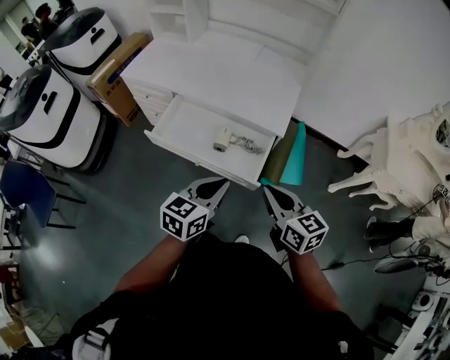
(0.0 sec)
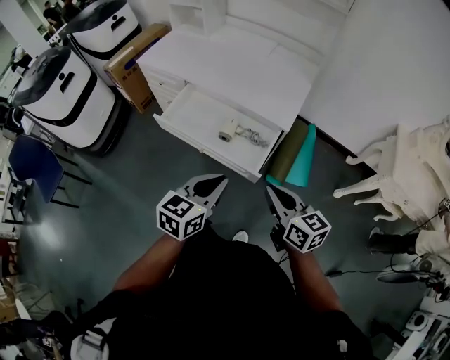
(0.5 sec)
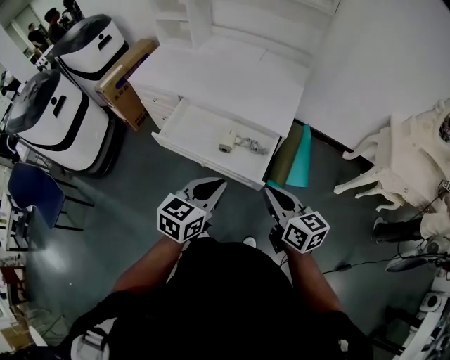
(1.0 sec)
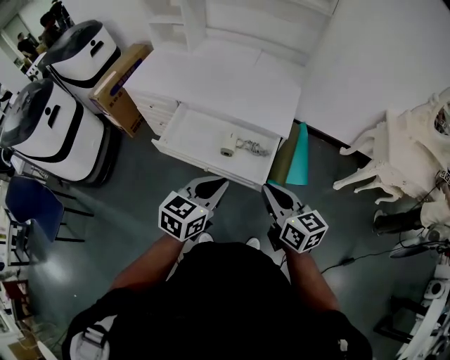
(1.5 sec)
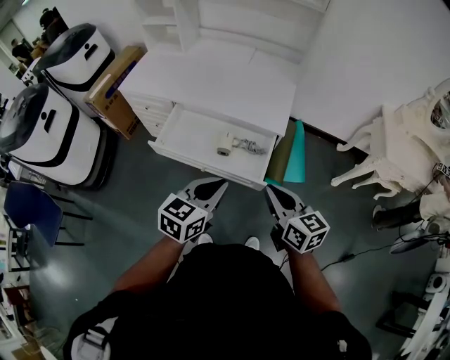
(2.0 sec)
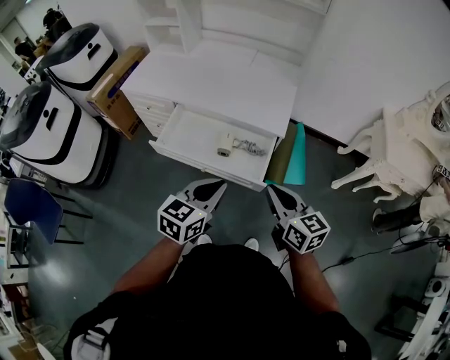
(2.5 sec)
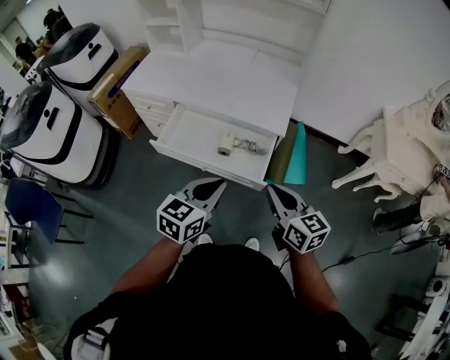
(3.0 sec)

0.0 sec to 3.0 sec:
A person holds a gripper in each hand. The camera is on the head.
0.0 sec to 3.0 sec: The grippers move only a little.

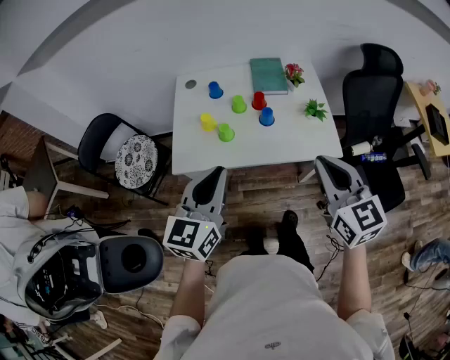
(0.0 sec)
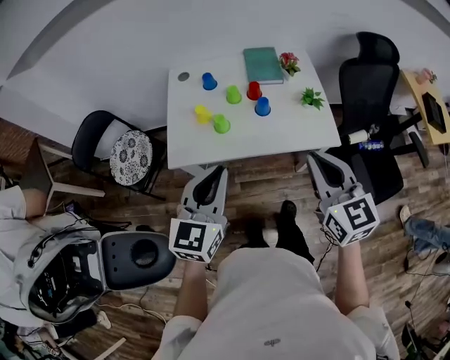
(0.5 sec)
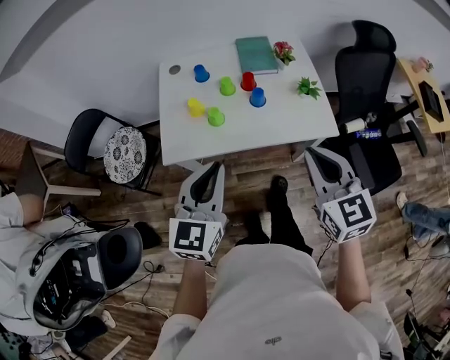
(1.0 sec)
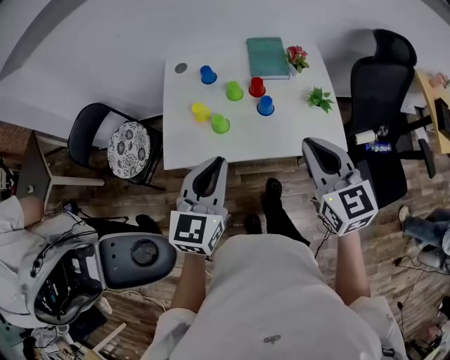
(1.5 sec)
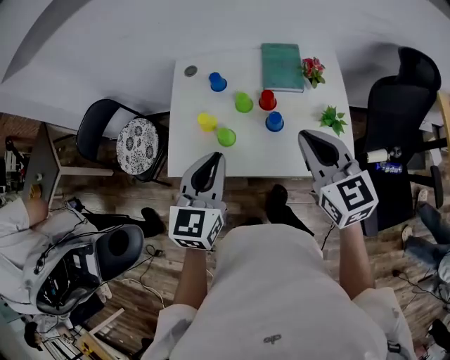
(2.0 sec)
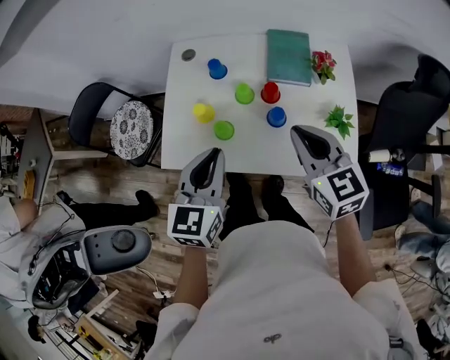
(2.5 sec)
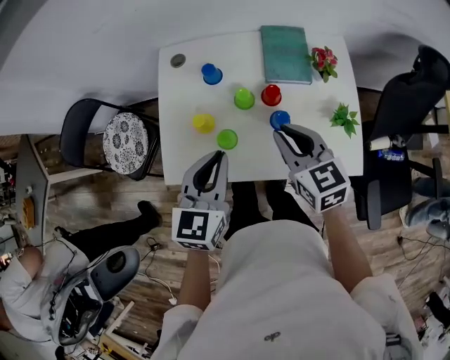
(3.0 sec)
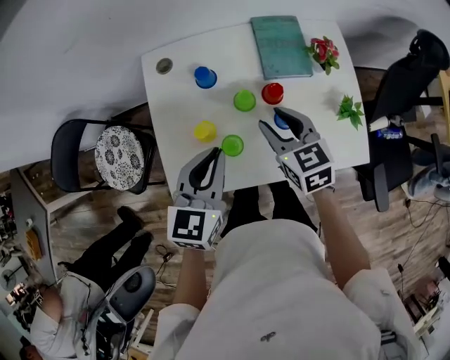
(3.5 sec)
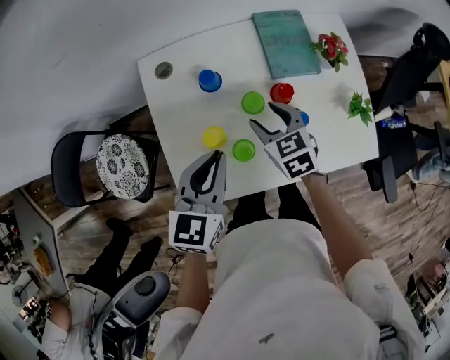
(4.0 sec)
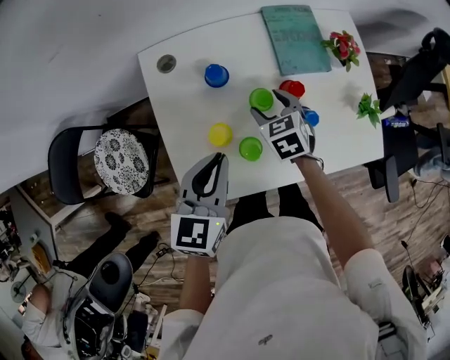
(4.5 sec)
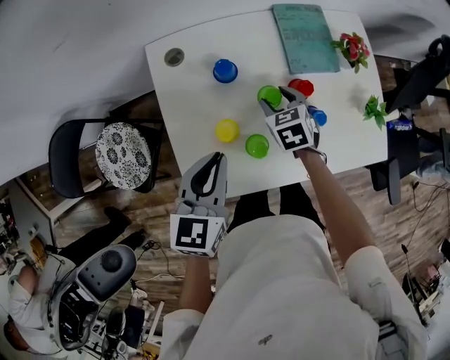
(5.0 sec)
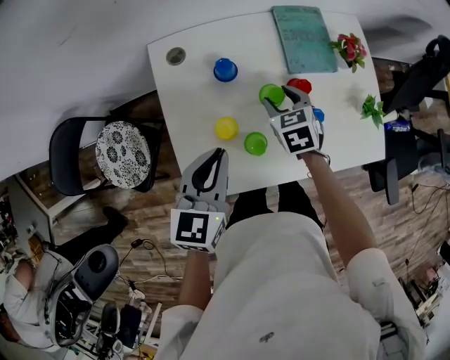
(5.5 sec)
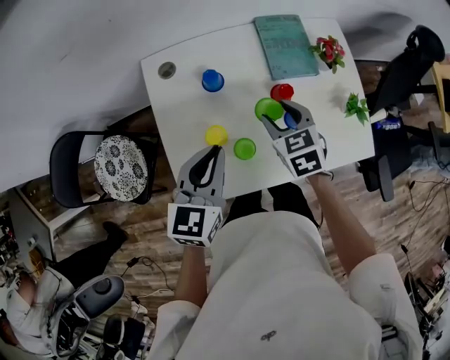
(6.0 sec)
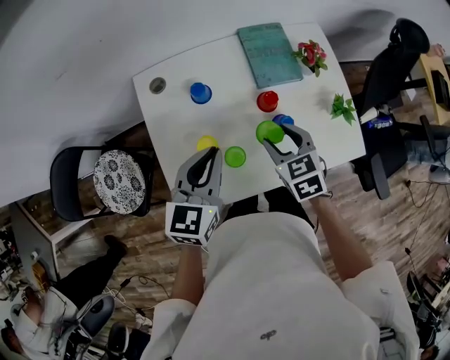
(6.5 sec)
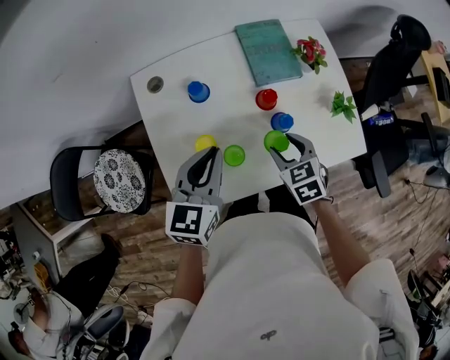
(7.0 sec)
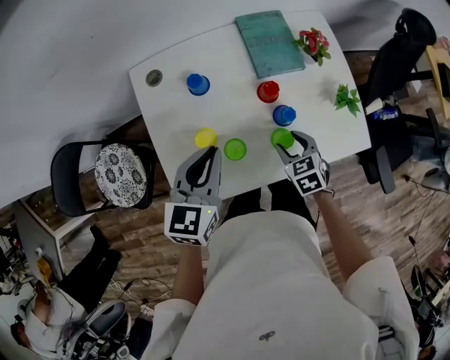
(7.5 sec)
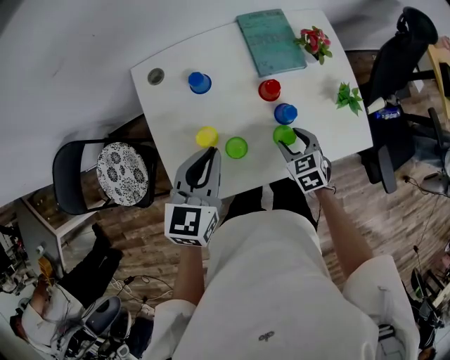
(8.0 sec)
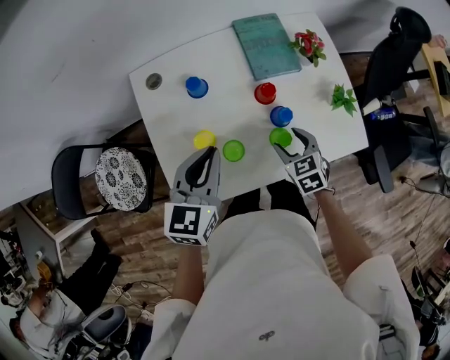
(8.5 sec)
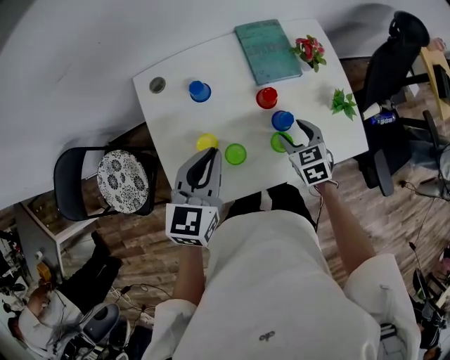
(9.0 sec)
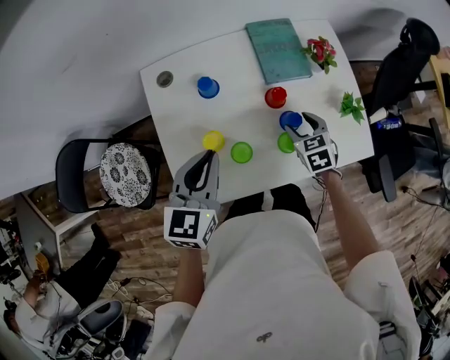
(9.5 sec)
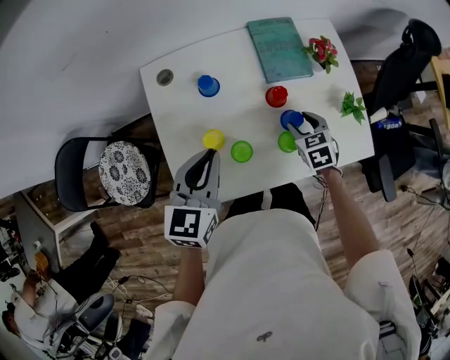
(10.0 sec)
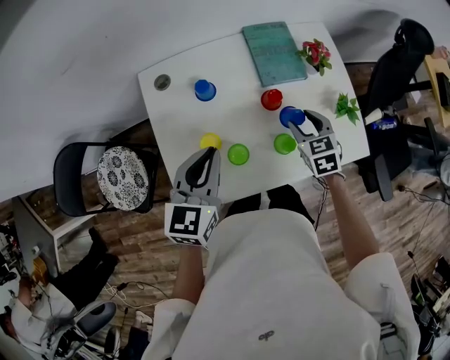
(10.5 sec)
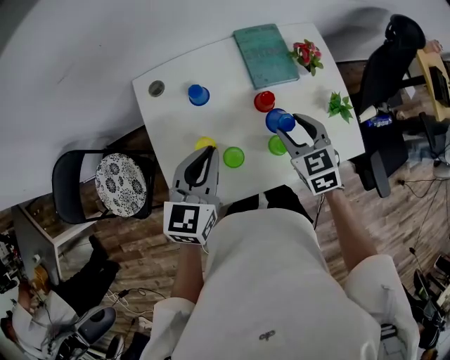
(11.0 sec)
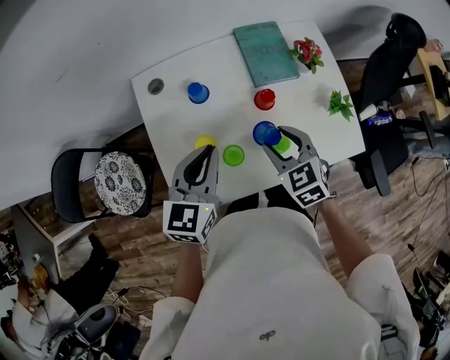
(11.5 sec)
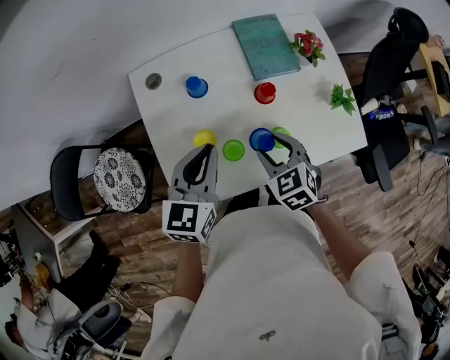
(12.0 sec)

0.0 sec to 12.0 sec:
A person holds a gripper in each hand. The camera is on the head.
0.0 sec to 2.0 sec: The two grippers go approximately 15 cm forward.
2.0 sec to 4.0 sec: The right gripper shifts roughly 35 cm downward, forward and to the left, changes its angle by about 30 degrees, and opens up; the left gripper moves forward, downward and to the left, approximately 20 cm, and turns by approximately 20 degrees.
4.0 sec to 6.0 sec: The right gripper travels downward and back again, some 5 cm each way.
6.0 sec to 8.0 sec: The right gripper goes roughly 15 cm downward, to the right and backward.
8.0 sec to 10.0 sec: The right gripper is displaced forward by approximately 5 cm.
10.0 sec to 12.0 sec: The right gripper shifts approximately 15 cm to the left, backward and upward.

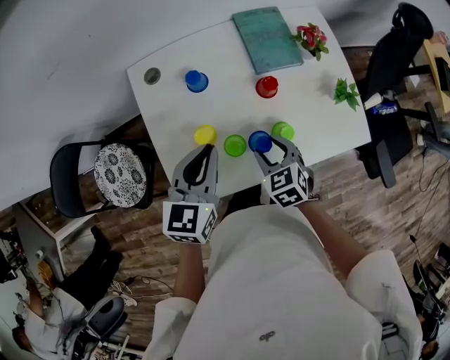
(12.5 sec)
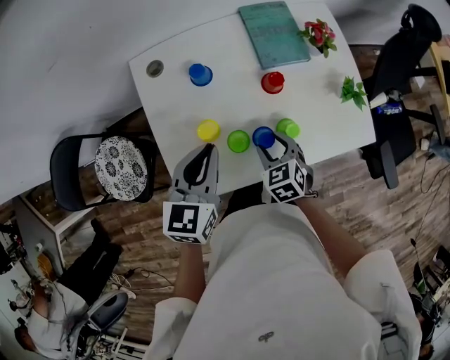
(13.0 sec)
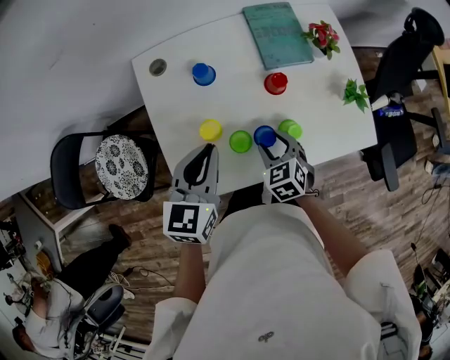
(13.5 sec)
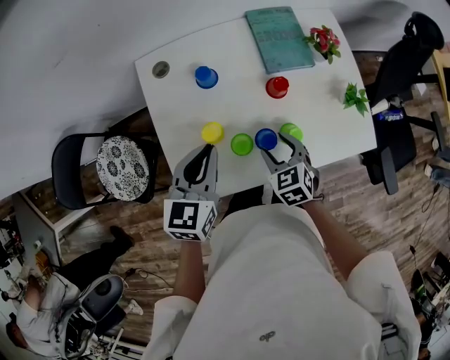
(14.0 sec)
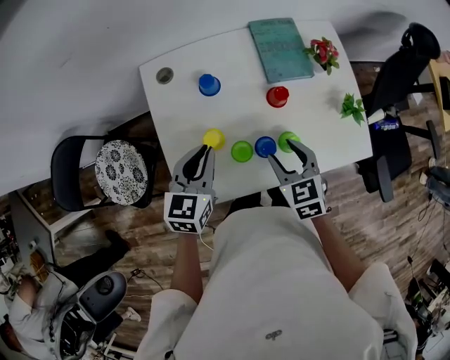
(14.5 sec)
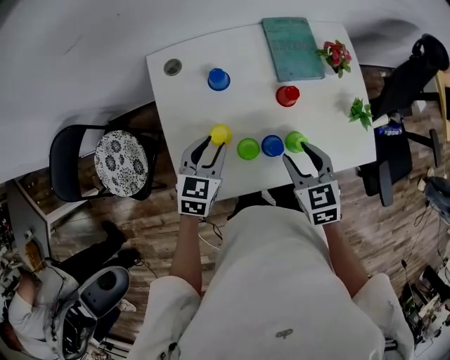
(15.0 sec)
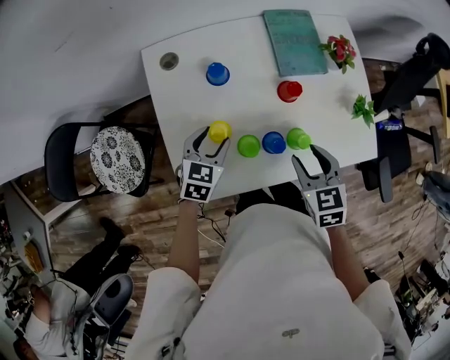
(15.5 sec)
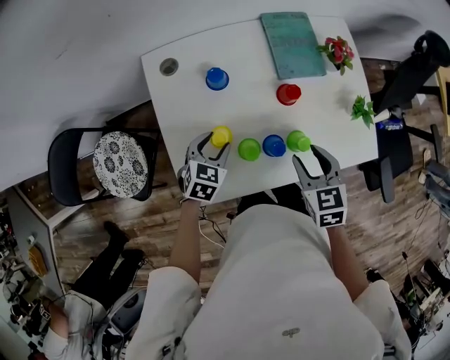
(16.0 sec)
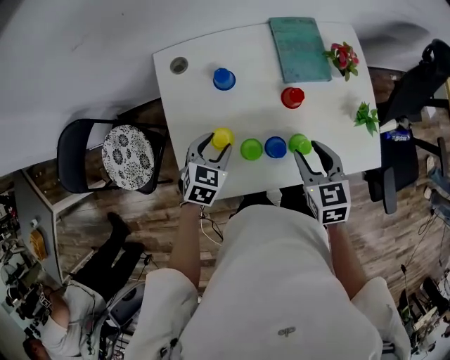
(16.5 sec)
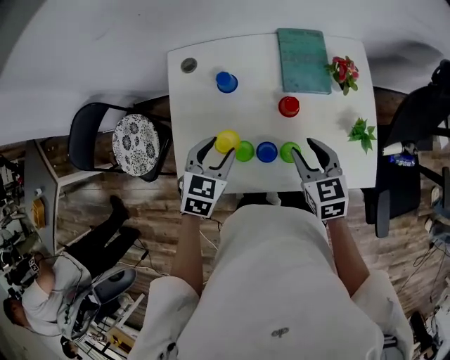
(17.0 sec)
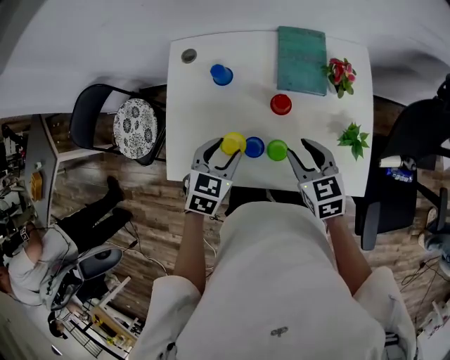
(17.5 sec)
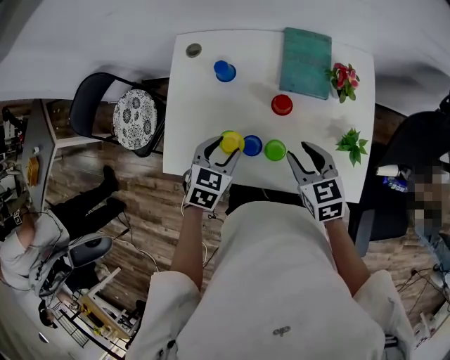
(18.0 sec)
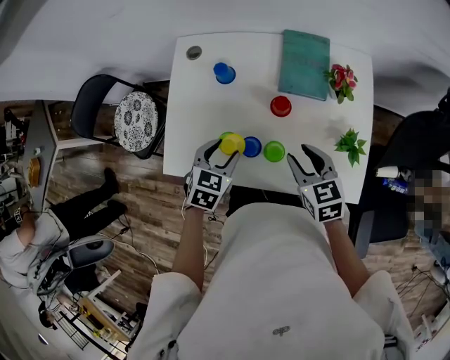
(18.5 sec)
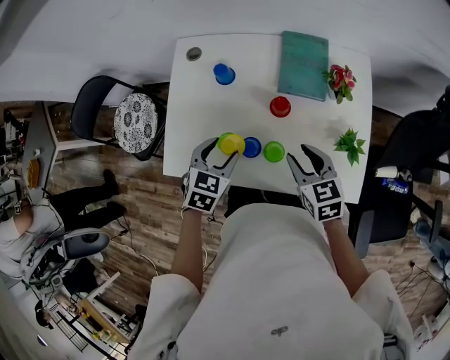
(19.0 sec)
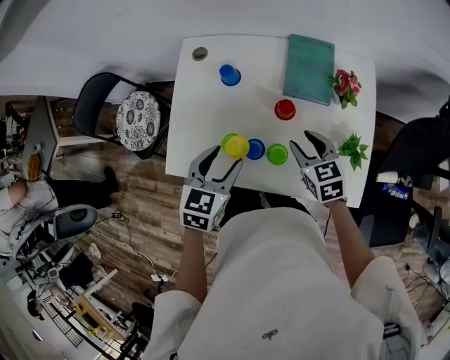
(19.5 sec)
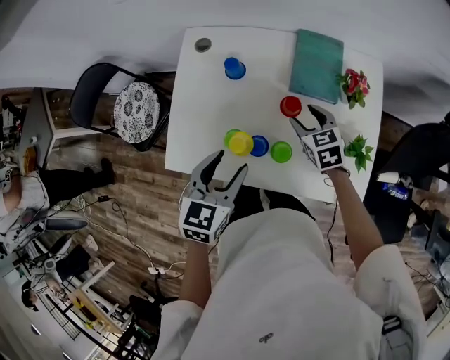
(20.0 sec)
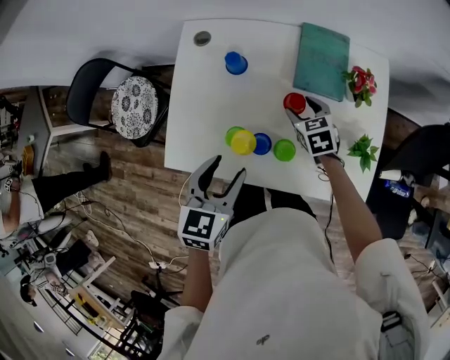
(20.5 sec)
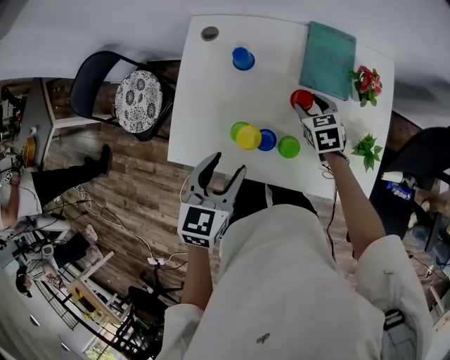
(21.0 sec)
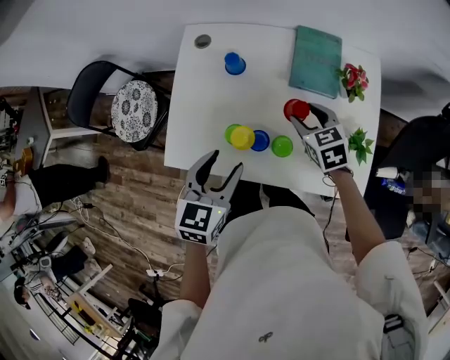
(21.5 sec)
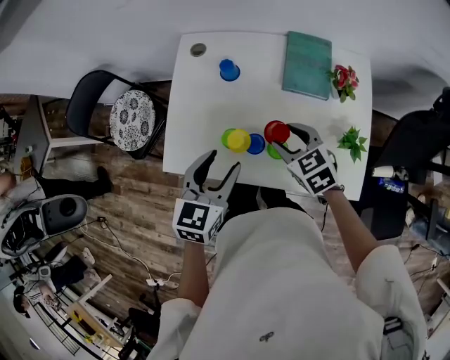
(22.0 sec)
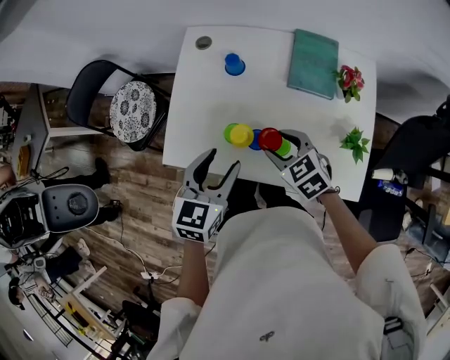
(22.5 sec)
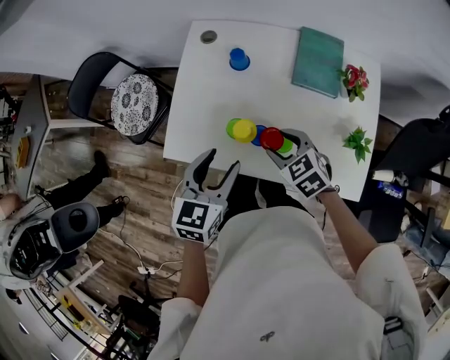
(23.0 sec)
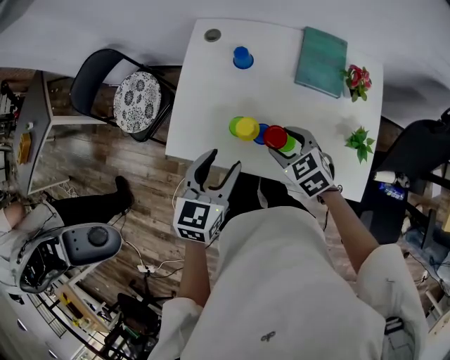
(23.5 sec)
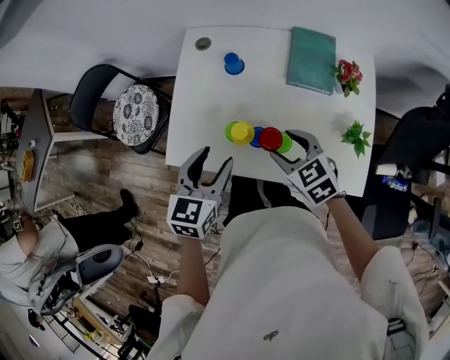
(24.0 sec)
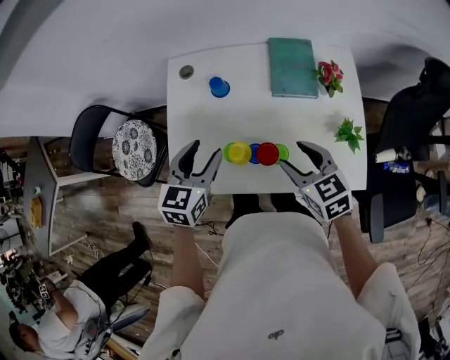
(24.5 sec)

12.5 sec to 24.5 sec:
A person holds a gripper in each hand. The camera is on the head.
12.5 sec to 14.5 sec: The right gripper goes about 5 cm upward. The left gripper moves roughly 5 cm.
14.5 sec to 16.5 sec: The left gripper goes approximately 10 cm downward, rotates some 30 degrees, and opens up.
16.5 sec to 18.5 sec: The left gripper shifts some 10 cm to the right and backward, while the right gripper is displaced to the right by about 10 cm, and swivels about 20 degrees.
18.5 sec to 20.5 sec: The left gripper shifts roughly 10 cm upward, and turns by roughly 20 degrees. The right gripper shifts roughly 15 cm forward and downward.
20.5 sec to 22.5 sec: The right gripper moves backward, upward and to the left, some 20 cm, and turns by about 20 degrees.
22.5 sec to 24.5 sec: The right gripper is displaced upward by some 5 cm, and turns by about 20 degrees. The left gripper heads forward, covering about 10 cm.
